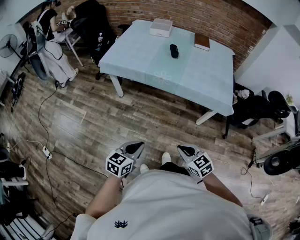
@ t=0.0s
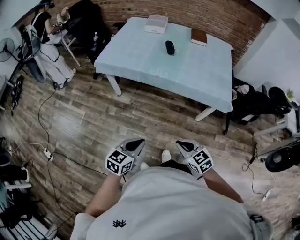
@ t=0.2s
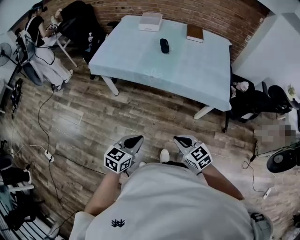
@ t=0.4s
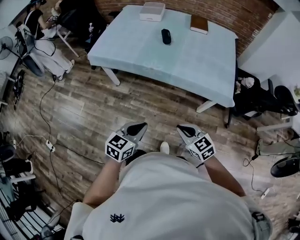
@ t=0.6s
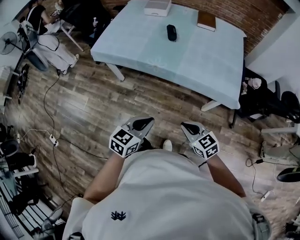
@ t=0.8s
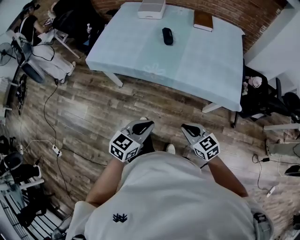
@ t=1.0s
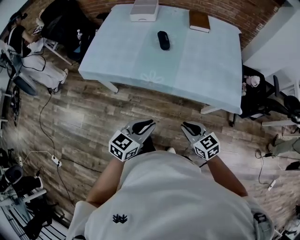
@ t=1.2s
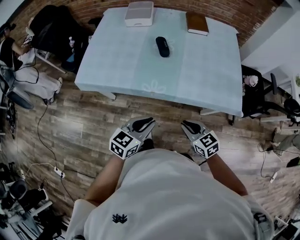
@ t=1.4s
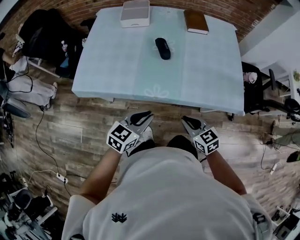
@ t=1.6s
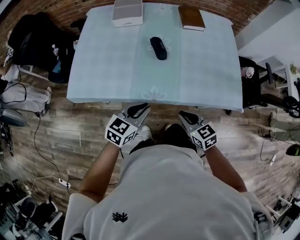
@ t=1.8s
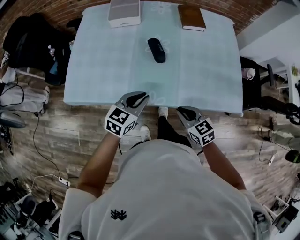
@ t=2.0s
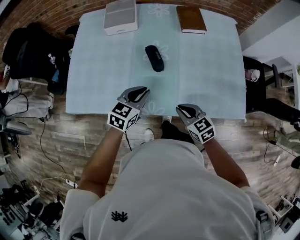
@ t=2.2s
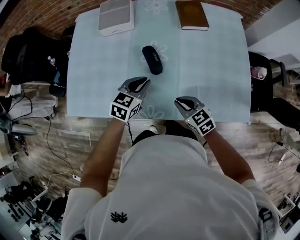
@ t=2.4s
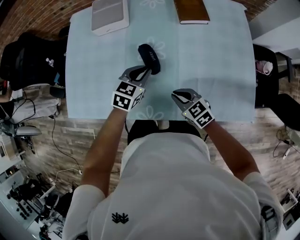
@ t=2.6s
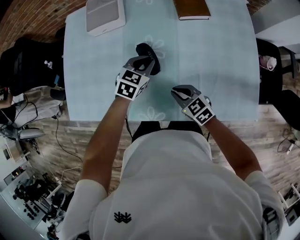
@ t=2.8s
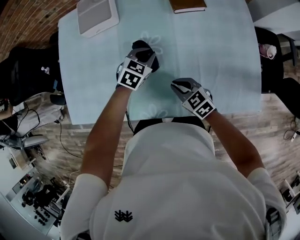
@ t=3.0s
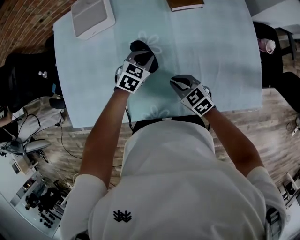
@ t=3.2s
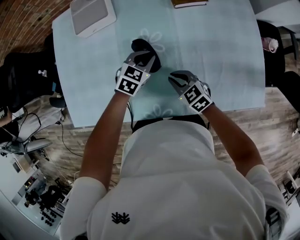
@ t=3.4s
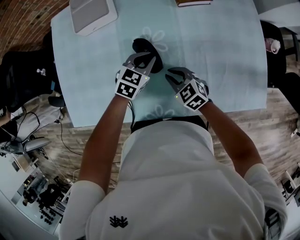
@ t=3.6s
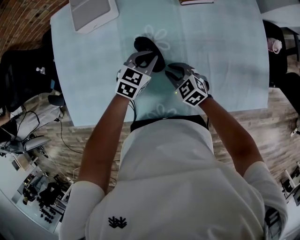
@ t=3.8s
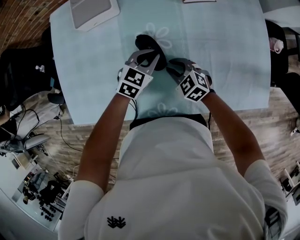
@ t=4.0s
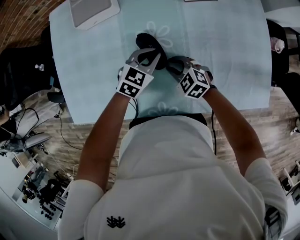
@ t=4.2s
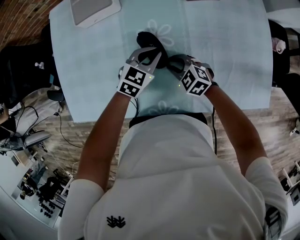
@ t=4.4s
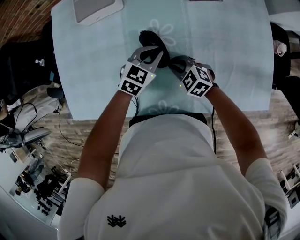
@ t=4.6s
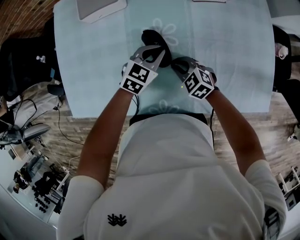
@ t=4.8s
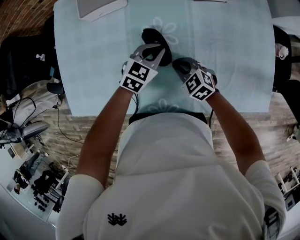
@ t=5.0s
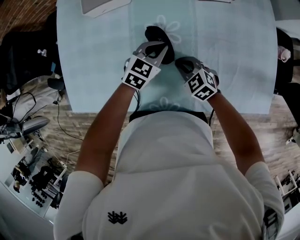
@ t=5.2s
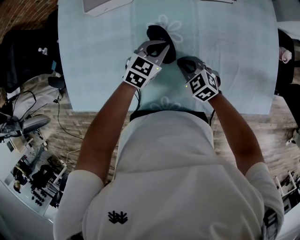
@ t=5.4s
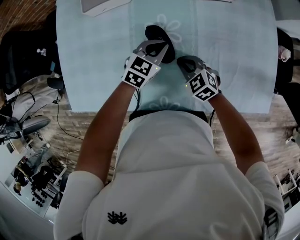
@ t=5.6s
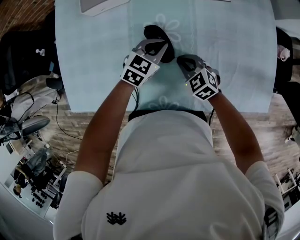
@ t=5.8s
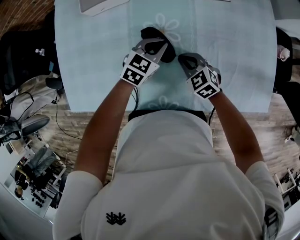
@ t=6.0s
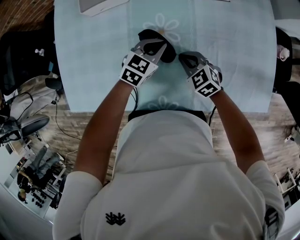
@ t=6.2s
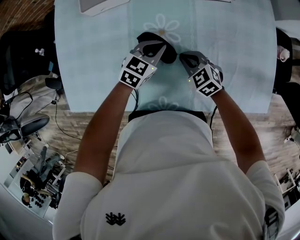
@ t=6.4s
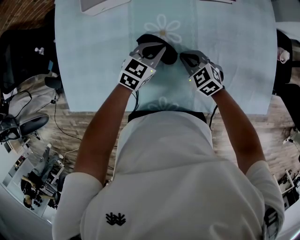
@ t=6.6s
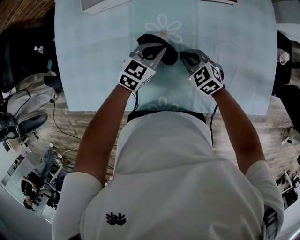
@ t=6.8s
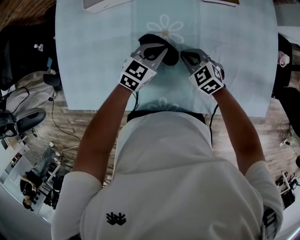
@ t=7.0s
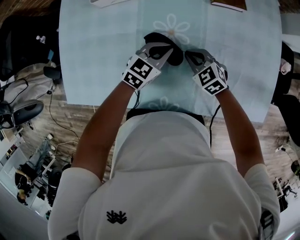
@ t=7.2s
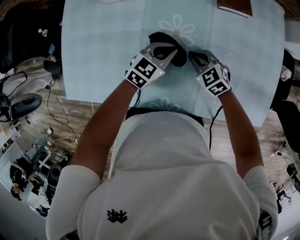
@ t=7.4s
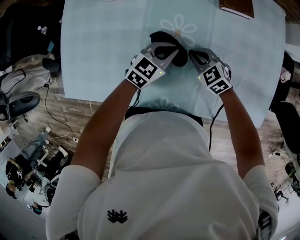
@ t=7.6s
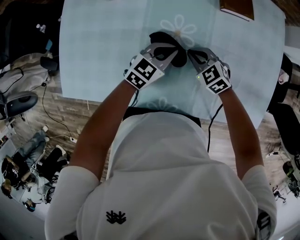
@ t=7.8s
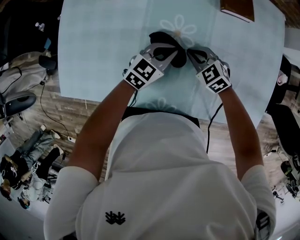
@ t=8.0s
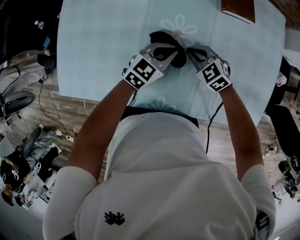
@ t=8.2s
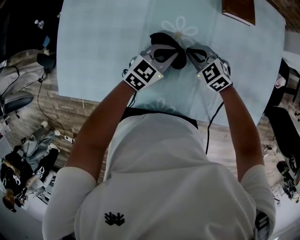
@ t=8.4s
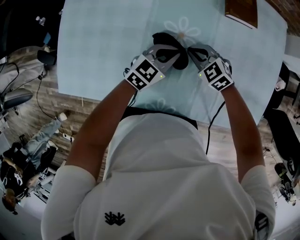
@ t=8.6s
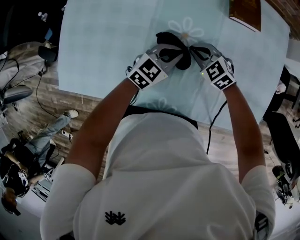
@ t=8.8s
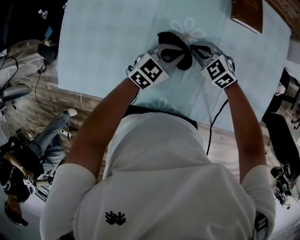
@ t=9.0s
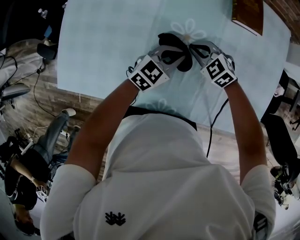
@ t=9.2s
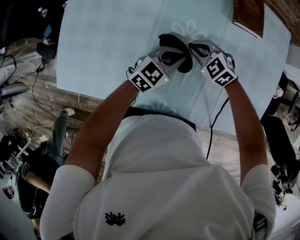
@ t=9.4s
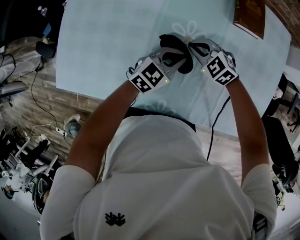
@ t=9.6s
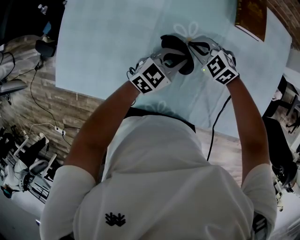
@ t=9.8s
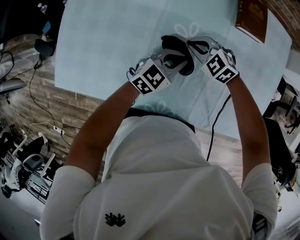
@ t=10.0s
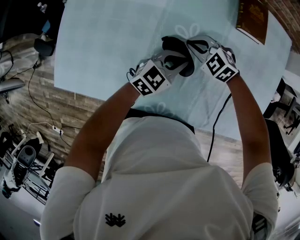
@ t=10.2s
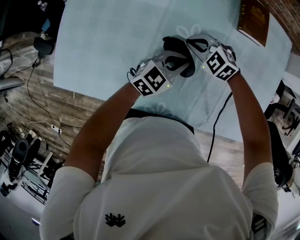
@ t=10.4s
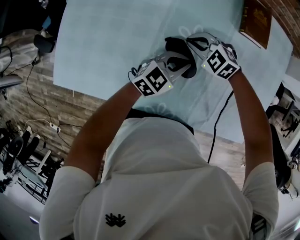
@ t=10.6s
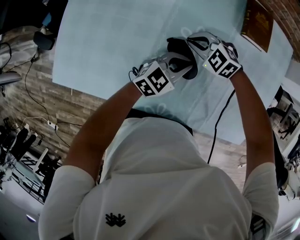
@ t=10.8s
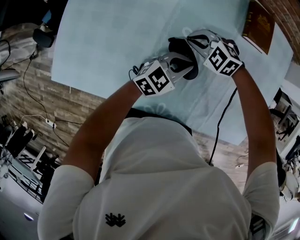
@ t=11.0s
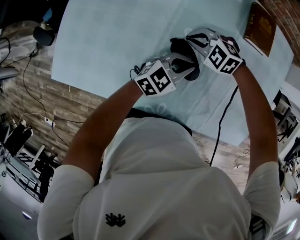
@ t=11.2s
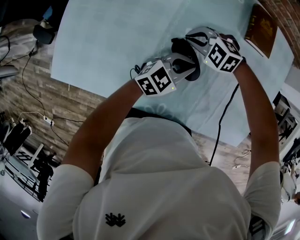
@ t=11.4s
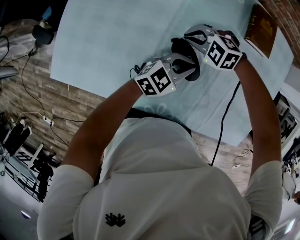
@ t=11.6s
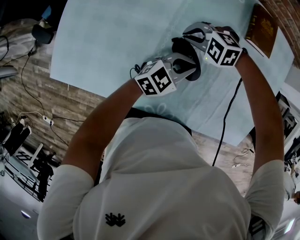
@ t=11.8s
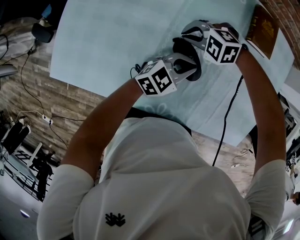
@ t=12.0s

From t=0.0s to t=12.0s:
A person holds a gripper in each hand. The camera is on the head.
From t=0.0s to t=1.6s: Both grippers move forward, roughly 40 cm. The left gripper changes its angle by about 20 degrees.
From t=1.6s to t=3.0s: The two grippers go about 35 cm forward. The left gripper turns by approximately 30 degrees.
From t=3.0s to t=4.4s: The right gripper heads forward, downward and to the left, covering about 10 cm.
From t=4.4s to t=7.6s: There are only small adjustments of the grippers.
From t=7.6s to t=9.0s: The grippers stay close to where they were, moving slightly.
From t=9.0s to t=10.4s: The right gripper changes place by about 5 cm.
From t=10.4s to t=12.0s: The right gripper shifts by approximately 5 cm, and changes its angle by some 30 degrees.

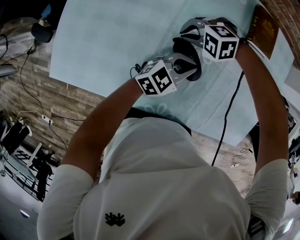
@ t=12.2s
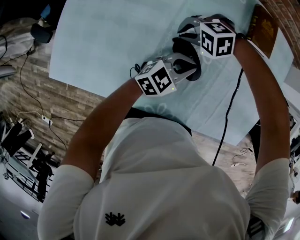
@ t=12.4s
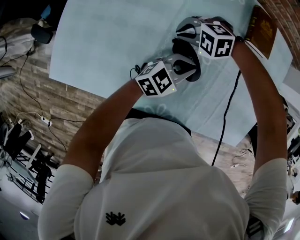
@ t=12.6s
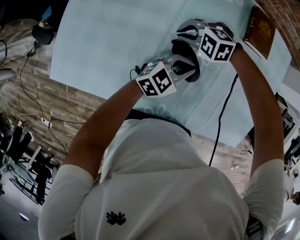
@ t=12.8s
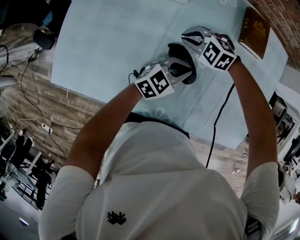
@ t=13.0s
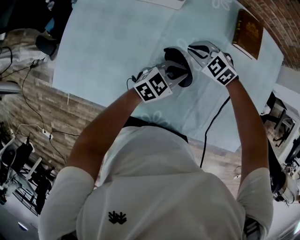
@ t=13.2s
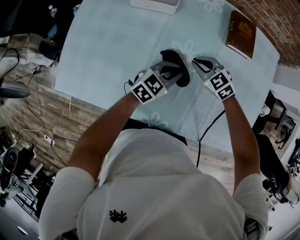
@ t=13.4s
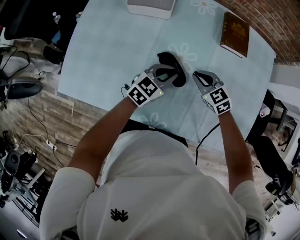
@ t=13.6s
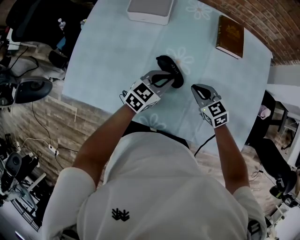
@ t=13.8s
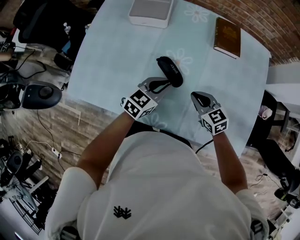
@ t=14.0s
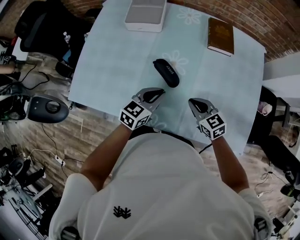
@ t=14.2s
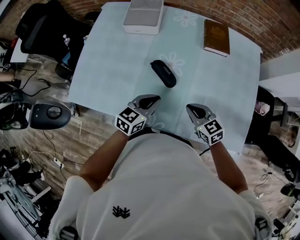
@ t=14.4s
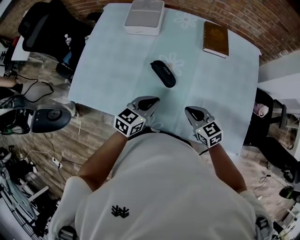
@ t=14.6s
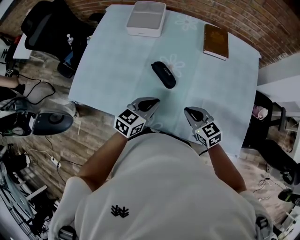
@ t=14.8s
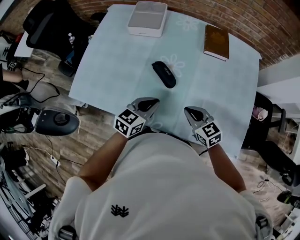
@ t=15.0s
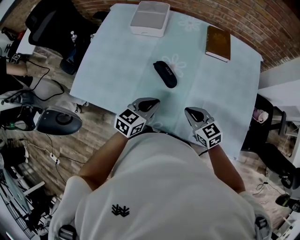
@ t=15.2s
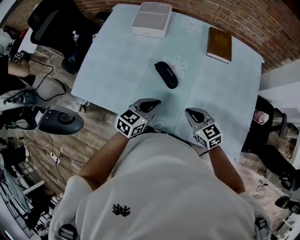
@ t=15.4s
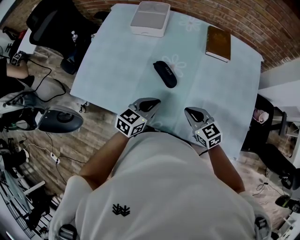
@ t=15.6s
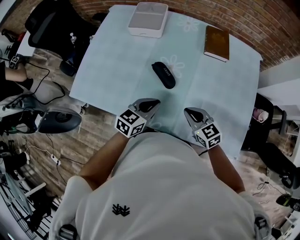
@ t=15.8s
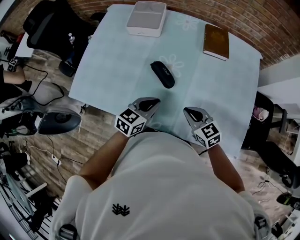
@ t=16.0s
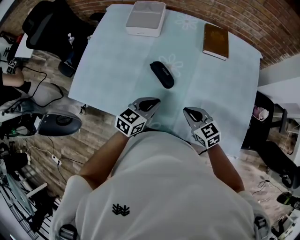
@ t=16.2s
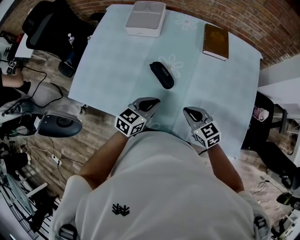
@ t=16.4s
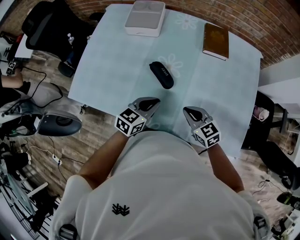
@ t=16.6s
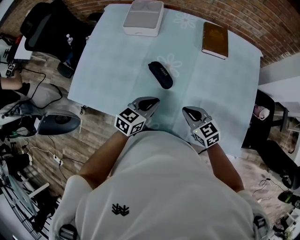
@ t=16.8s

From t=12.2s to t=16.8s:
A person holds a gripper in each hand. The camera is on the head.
From t=12.2s to t=13.8s: The right gripper changes place by roughly 20 cm, and changes its angle by some 70 degrees; the left gripper ends up some 5 cm from where it was.
From t=13.8s to t=15.2s: The two grippers go approximately 10 cm backward.
From t=15.2s to t=16.8s: The grippers stay close to where they were, moving slightly.
